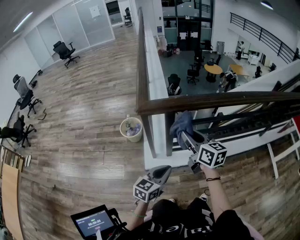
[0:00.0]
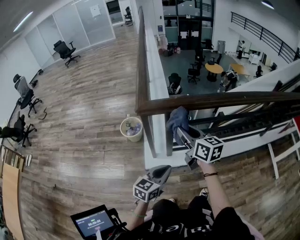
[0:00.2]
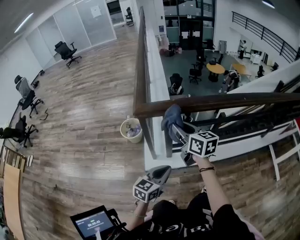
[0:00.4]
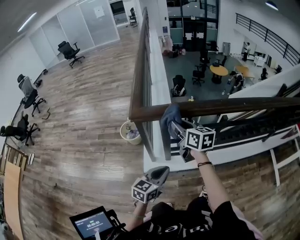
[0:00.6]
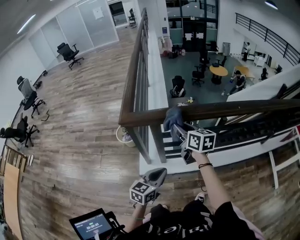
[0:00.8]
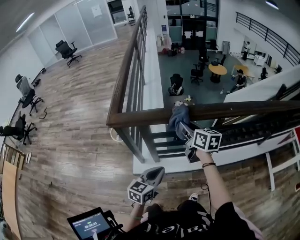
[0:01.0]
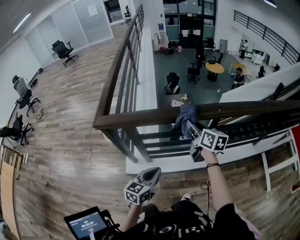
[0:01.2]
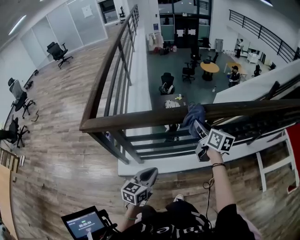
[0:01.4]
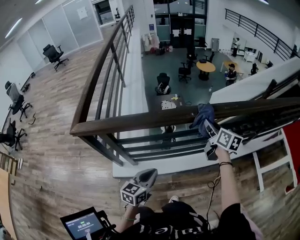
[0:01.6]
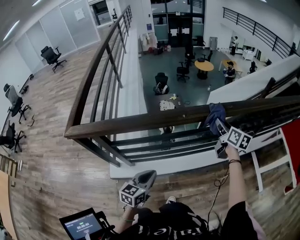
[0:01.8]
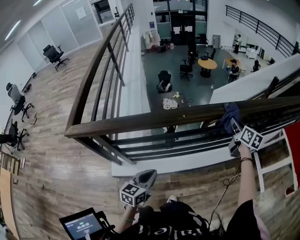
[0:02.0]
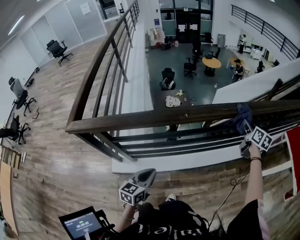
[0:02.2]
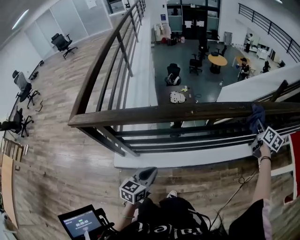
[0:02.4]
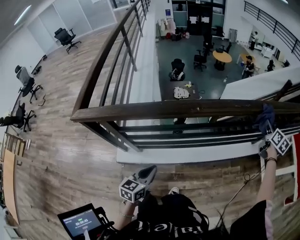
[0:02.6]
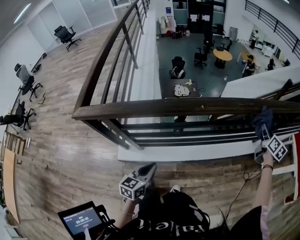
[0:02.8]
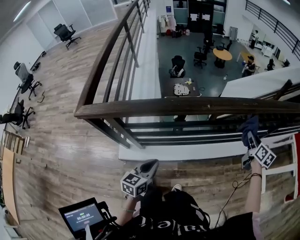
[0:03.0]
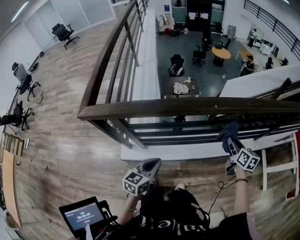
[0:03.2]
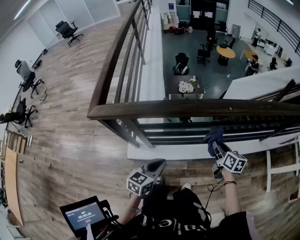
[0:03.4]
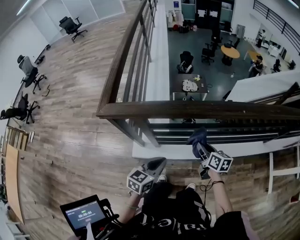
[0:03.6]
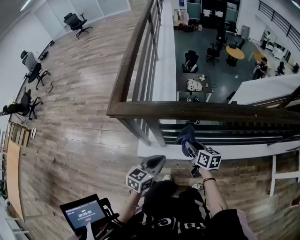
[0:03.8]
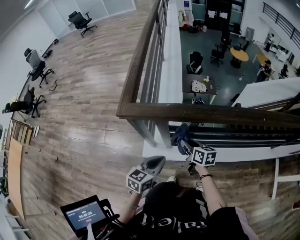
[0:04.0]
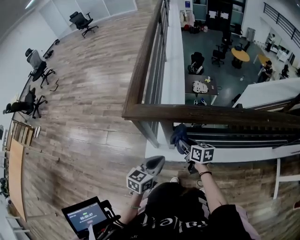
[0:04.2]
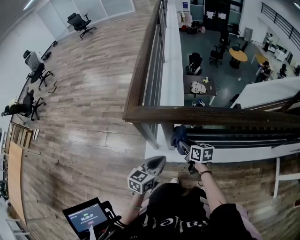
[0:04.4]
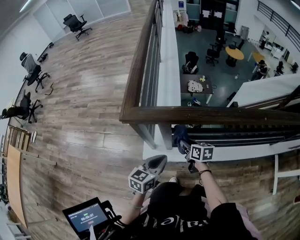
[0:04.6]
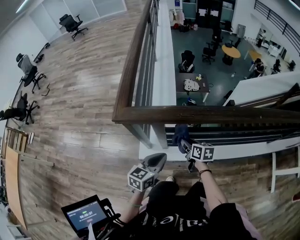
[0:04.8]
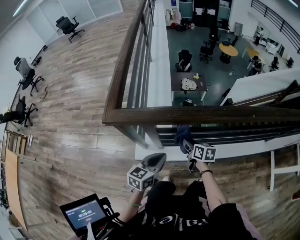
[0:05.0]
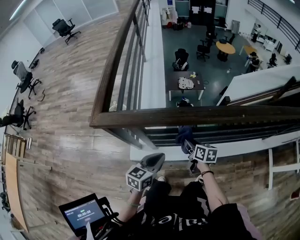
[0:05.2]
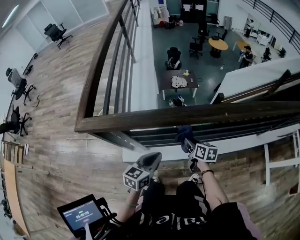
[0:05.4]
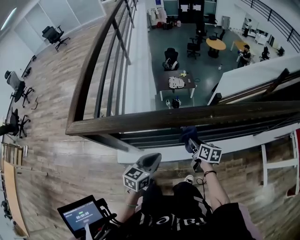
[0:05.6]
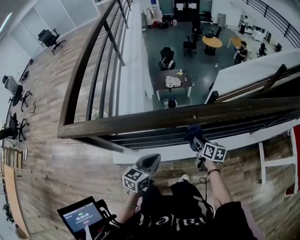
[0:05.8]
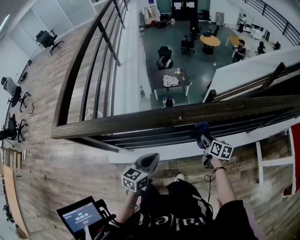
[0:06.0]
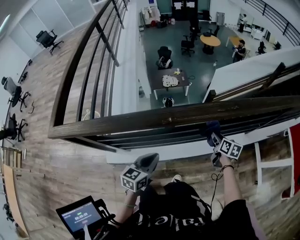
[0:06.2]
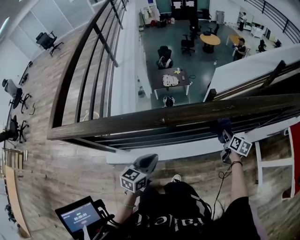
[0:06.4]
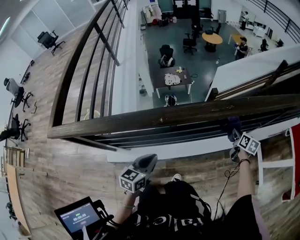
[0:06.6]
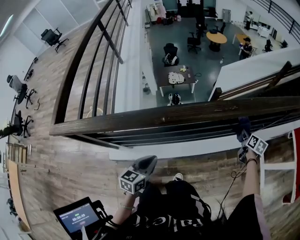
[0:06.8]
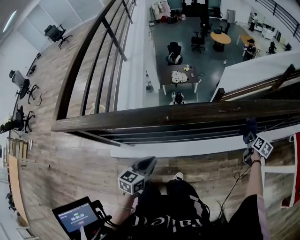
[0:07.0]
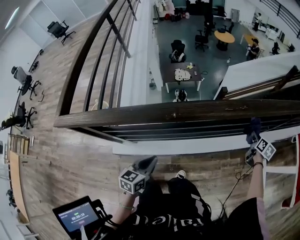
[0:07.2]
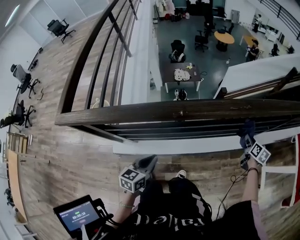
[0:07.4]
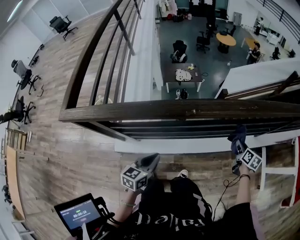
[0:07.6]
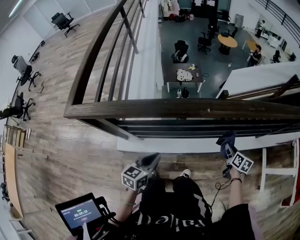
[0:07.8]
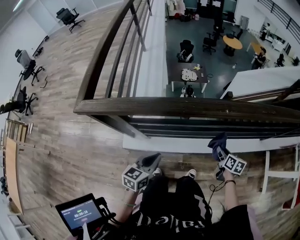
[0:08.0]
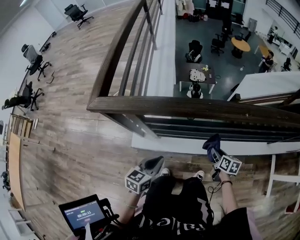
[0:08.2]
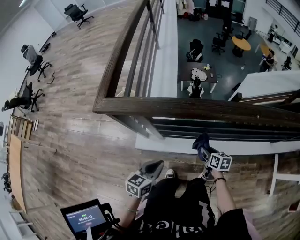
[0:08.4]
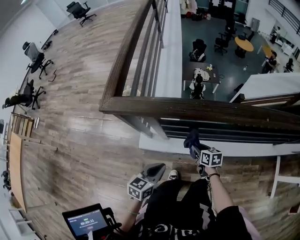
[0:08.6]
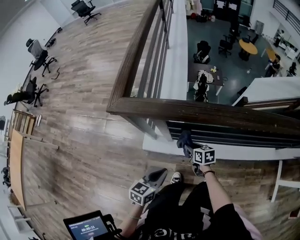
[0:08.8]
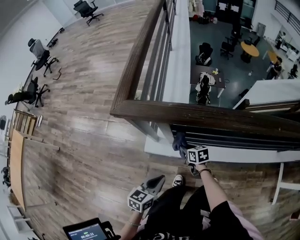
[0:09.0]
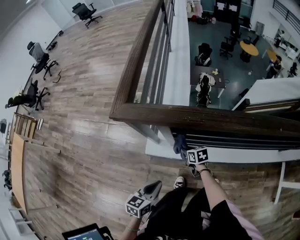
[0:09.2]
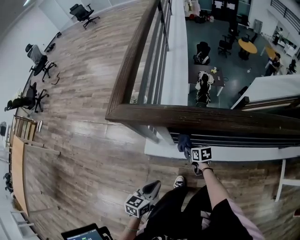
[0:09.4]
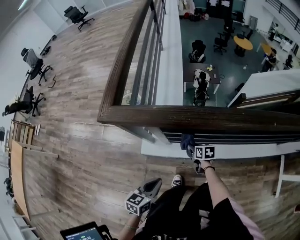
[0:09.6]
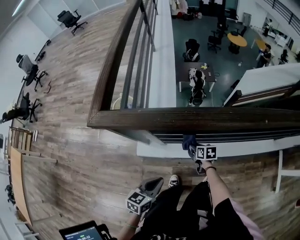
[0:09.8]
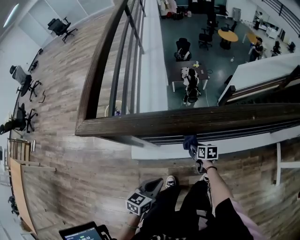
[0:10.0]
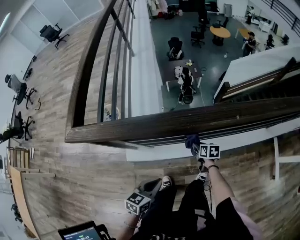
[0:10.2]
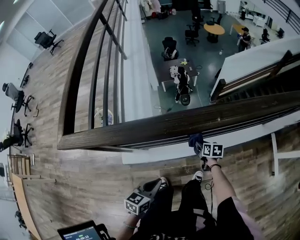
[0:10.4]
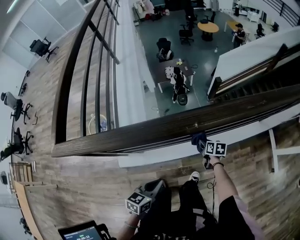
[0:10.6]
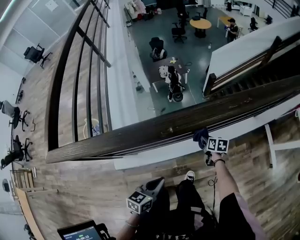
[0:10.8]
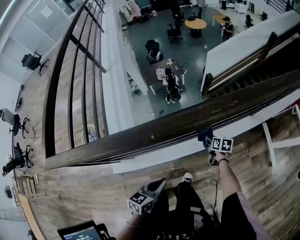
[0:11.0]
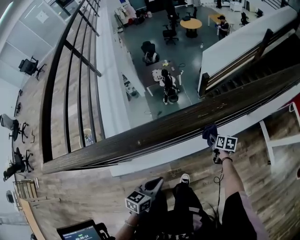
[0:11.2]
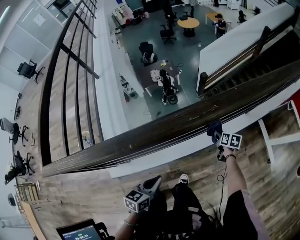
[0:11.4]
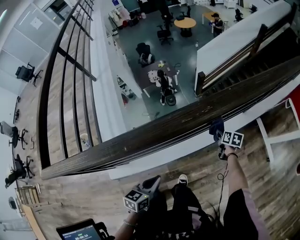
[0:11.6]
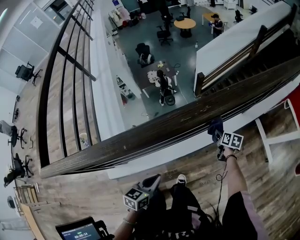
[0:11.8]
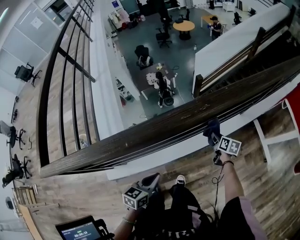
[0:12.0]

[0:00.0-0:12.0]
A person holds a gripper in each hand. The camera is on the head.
0:00.0 to 0:01.6: The right gripper is displaced to the right and forward by some 60 cm, while the left gripper moves to the right and forward, roughly 40 cm.
0:01.6 to 0:03.0: The right gripper is displaced to the right by approximately 20 cm.
0:03.0 to 0:04.4: The left gripper goes about 30 cm to the left; the right gripper shifts approximately 70 cm to the left, and swivels about 40 degrees.
0:04.4 to 0:06.0: Both grippers move to the right, roughly 50 cm. The right gripper swivels approximately 30 degrees.
0:06.0 to 0:07.6: The right gripper heads to the right, covering roughly 15 cm; the left gripper shifts some 5 cm backward.
0:07.6 to 0:09.0: The right gripper changes place by about 70 cm, and turns by approximately 50 degrees, while the left gripper moves approximately 30 cm.
0:09.0 to 0:10.4: The right gripper changes place by about 40 cm, and rotates approximately 30 degrees; the left gripper moves approximately 25 cm.
0:10.4 to 0:12.0: The left gripper moves to the right and forward, about 30 cm. The right gripper is displaced to the right by some 40 cm, and turns by roughly 30 degrees.

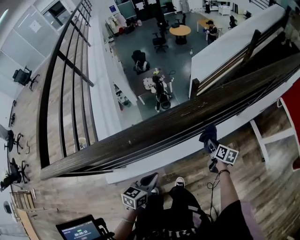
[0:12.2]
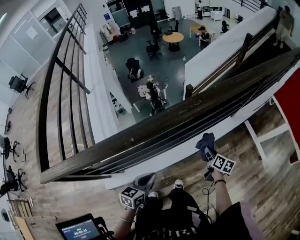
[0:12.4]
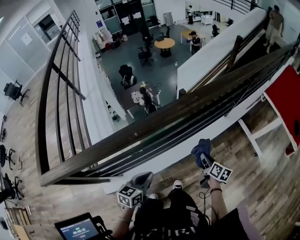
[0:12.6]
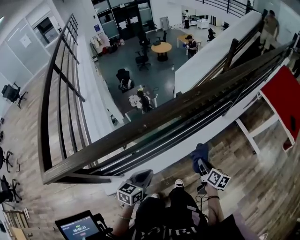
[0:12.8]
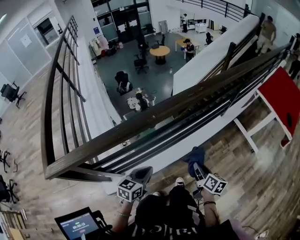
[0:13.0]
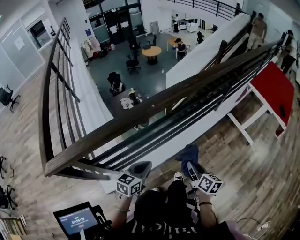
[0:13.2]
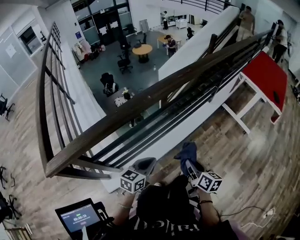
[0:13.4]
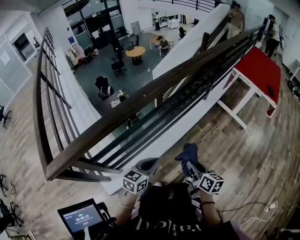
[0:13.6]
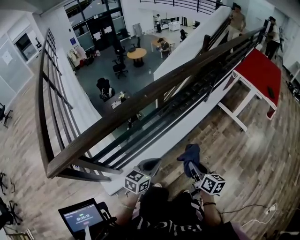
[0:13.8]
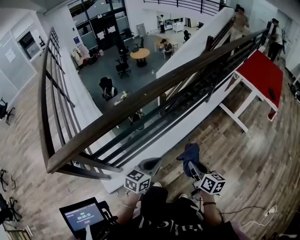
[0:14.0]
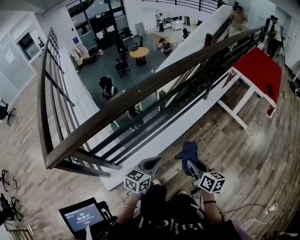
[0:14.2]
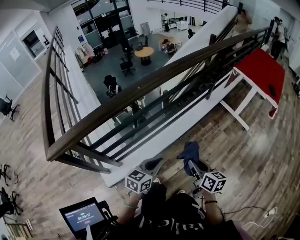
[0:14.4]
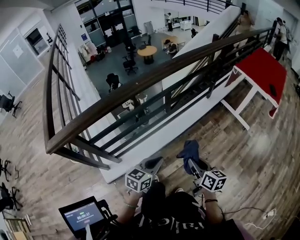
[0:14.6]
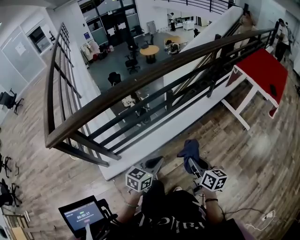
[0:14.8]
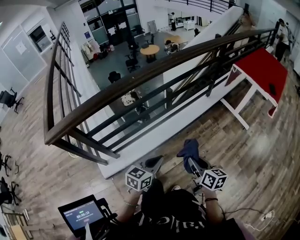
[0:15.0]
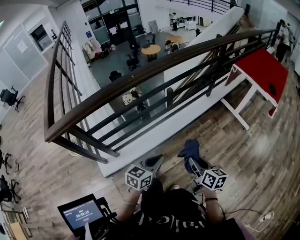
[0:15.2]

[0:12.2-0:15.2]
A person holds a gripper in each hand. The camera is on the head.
0:12.2 to 0:13.8: The right gripper heads backward and upward, covering roughly 50 cm, and changes its angle by about 20 degrees, while the left gripper is displaced backward and upward by about 25 cm, and rotates approximately 30 degrees.
0:13.8 to 0:15.2: Both grippers travel together to the right and backward, approximately 15 cm.

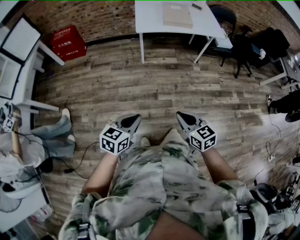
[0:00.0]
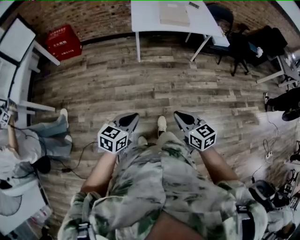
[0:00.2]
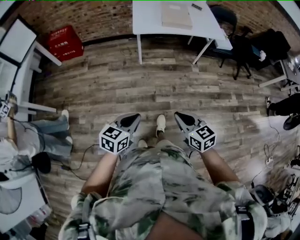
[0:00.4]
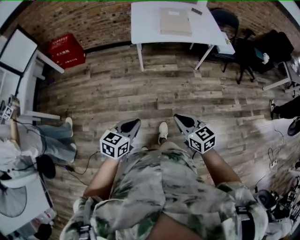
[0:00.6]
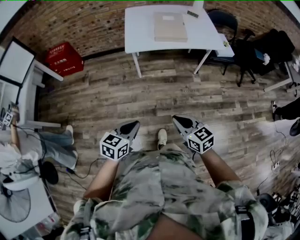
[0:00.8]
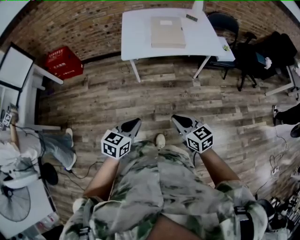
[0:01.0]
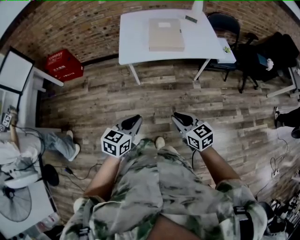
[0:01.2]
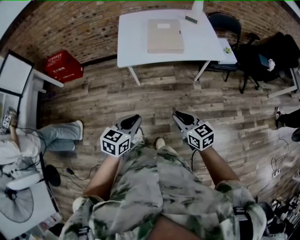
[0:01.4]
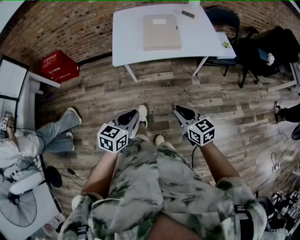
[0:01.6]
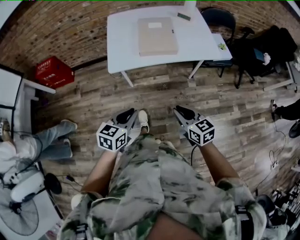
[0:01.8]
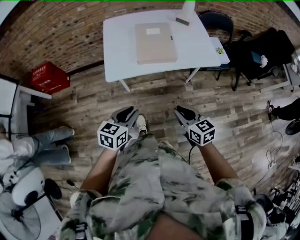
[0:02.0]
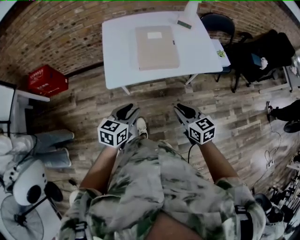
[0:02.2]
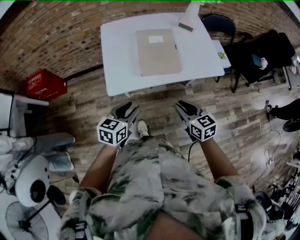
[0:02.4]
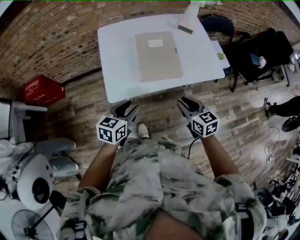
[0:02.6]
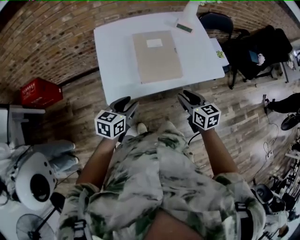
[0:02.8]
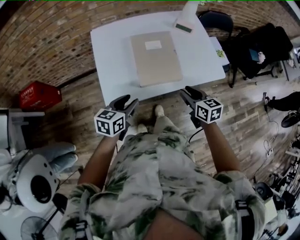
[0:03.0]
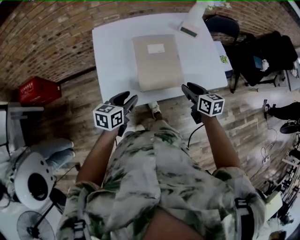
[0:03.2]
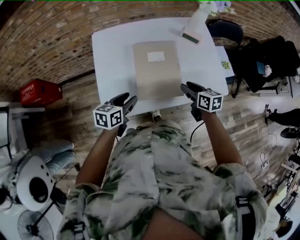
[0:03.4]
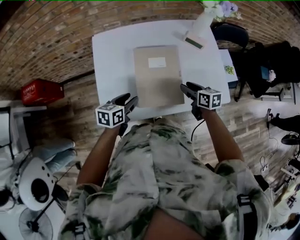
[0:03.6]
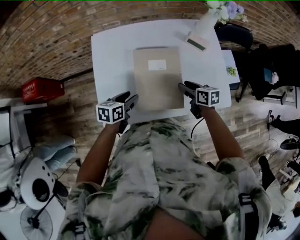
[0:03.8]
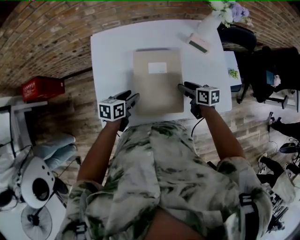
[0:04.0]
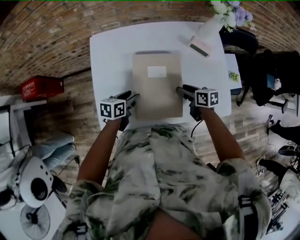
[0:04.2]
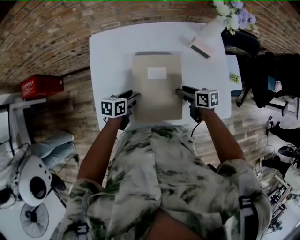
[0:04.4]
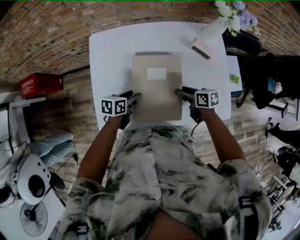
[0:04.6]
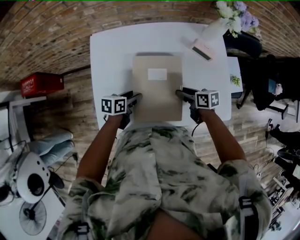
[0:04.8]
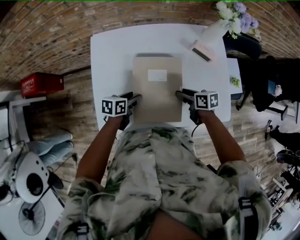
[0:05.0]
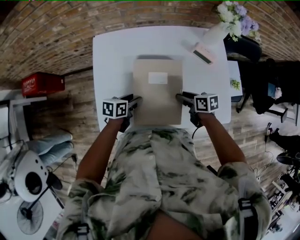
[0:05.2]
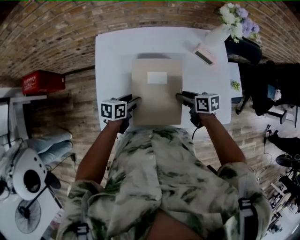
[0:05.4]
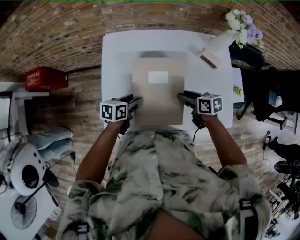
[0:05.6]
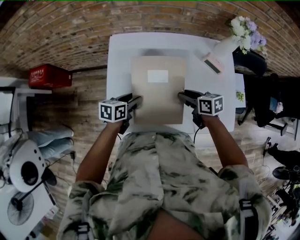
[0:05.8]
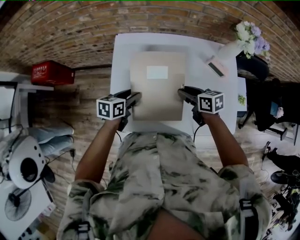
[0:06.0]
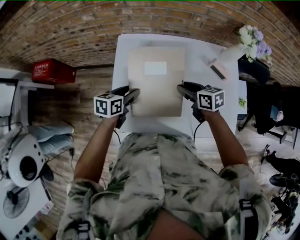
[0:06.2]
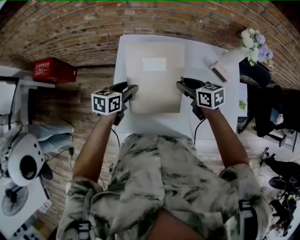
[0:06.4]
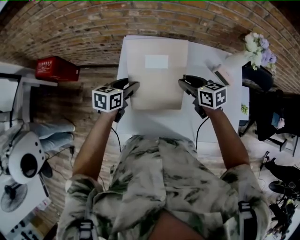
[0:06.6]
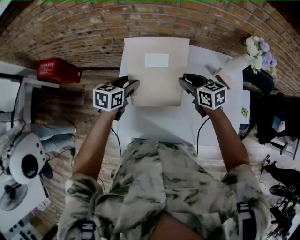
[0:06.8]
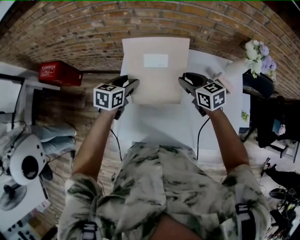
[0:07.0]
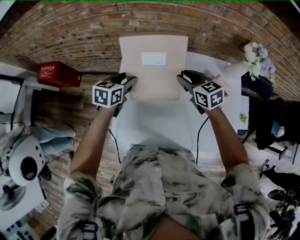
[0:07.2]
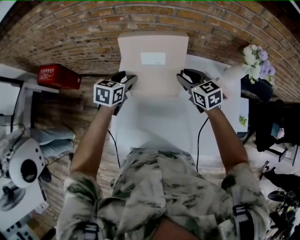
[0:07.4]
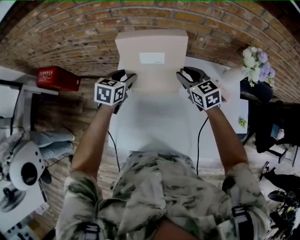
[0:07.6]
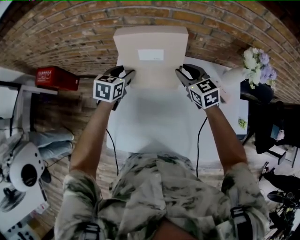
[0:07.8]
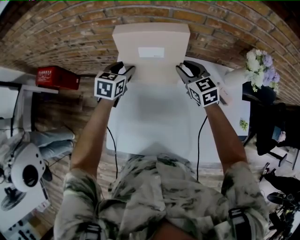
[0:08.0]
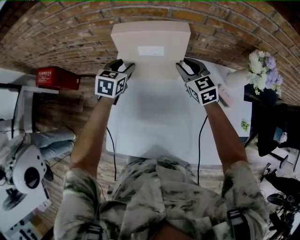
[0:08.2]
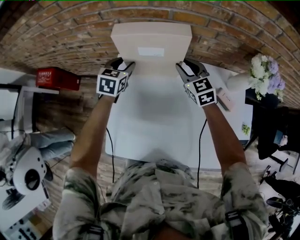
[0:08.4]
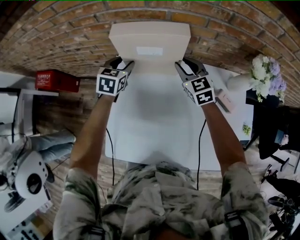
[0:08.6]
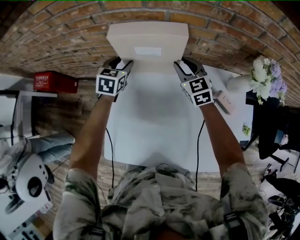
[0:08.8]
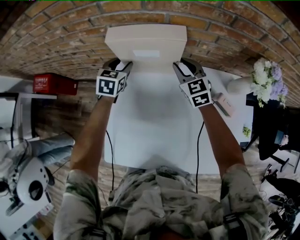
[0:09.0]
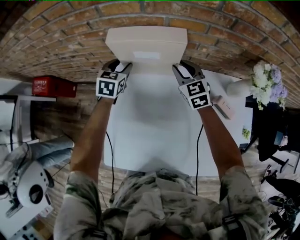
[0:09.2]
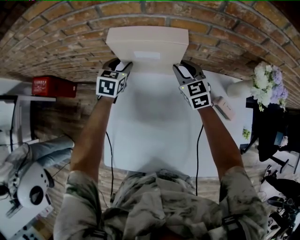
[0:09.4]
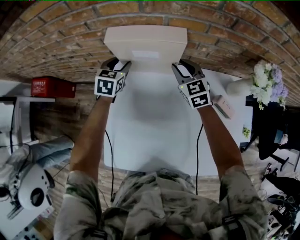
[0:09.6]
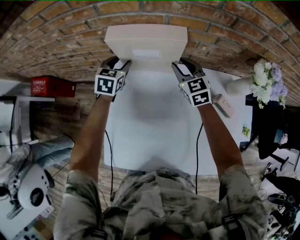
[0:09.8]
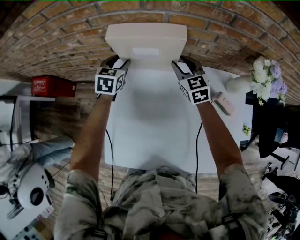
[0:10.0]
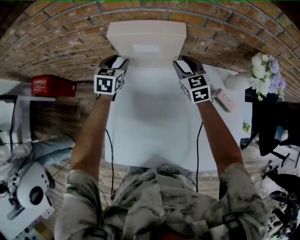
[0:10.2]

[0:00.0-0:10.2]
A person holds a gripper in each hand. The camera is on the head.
0:00.0 to 0:01.4: Both grippers move forward and to the right, roughly 35 cm.
0:01.4 to 0:03.0: The two grippers travel together, forward, some 40 cm. The left gripper opens. Meanwhile the right gripper rotates roughly 20 degrees.
0:03.0 to 0:04.4: The two grippers go approximately 25 cm forward and downward. The left gripper turns by approximately 20 degrees; the right gripper swivels about 30 degrees.
0:04.4 to 0:05.8: The two grippers go approximately 10 cm to the left and upward.
0:05.8 to 0:07.2: The two grippers go some 20 cm forward and upward. The right gripper turns by some 30 degrees, while the left gripper swivels roughly 20 degrees.
0:07.2 to 0:08.8: Both grippers move forward, roughly 20 cm. The right gripper turns by approximately 20 degrees.
0:08.8 to 0:10.2: The grippers make only small movements.
